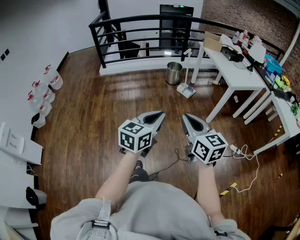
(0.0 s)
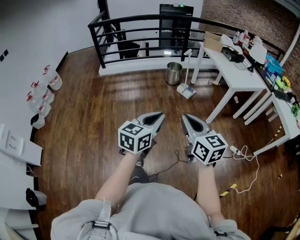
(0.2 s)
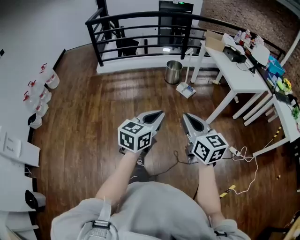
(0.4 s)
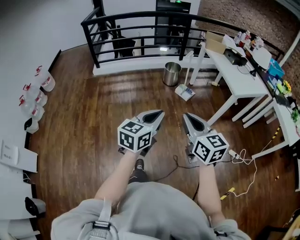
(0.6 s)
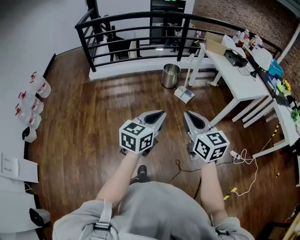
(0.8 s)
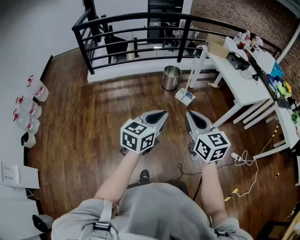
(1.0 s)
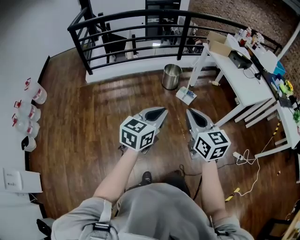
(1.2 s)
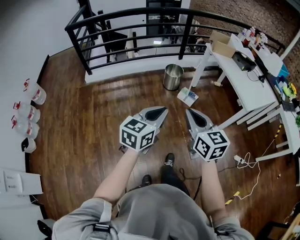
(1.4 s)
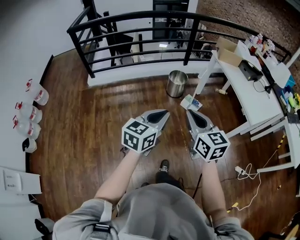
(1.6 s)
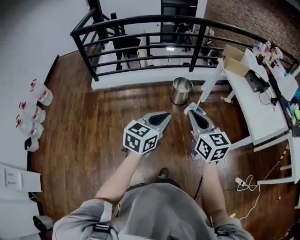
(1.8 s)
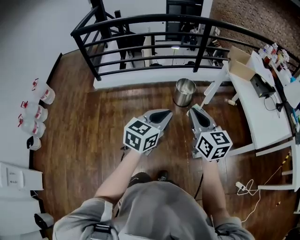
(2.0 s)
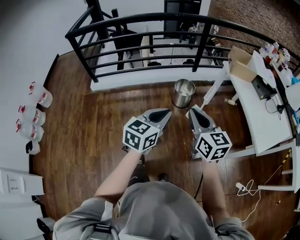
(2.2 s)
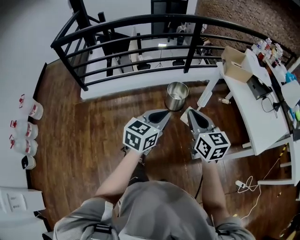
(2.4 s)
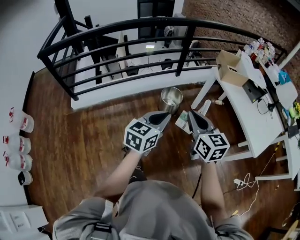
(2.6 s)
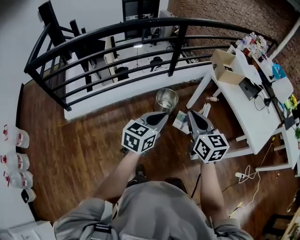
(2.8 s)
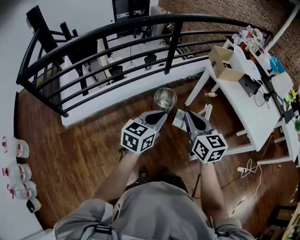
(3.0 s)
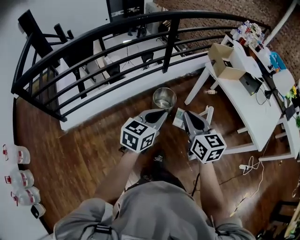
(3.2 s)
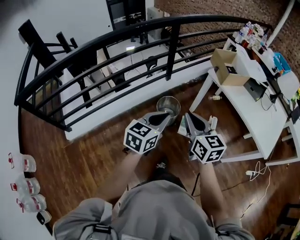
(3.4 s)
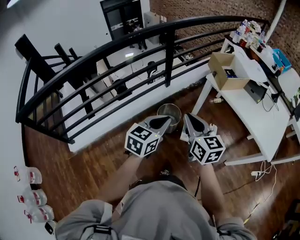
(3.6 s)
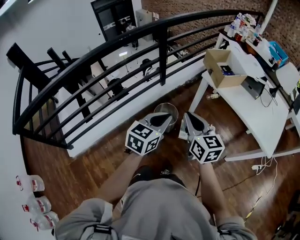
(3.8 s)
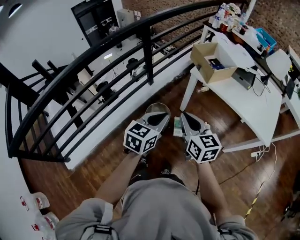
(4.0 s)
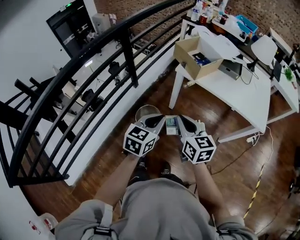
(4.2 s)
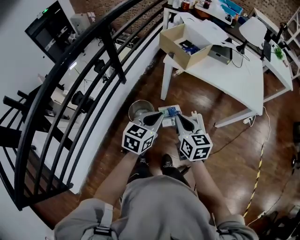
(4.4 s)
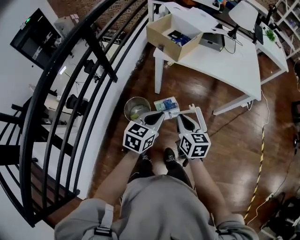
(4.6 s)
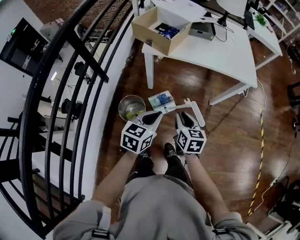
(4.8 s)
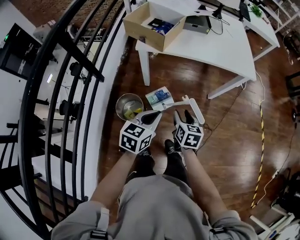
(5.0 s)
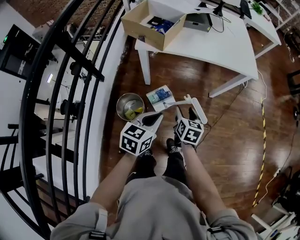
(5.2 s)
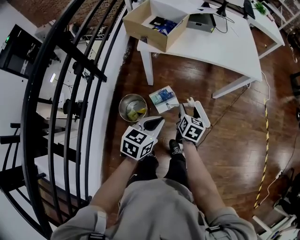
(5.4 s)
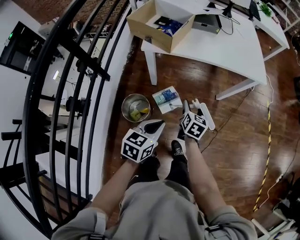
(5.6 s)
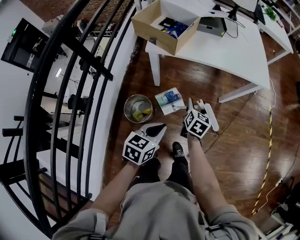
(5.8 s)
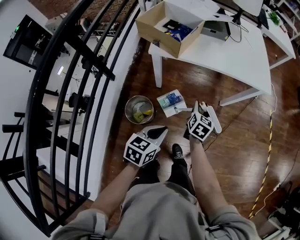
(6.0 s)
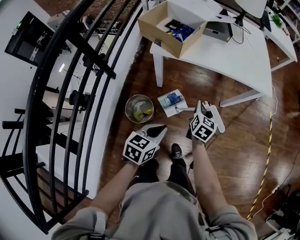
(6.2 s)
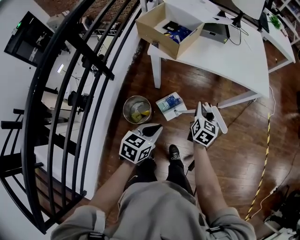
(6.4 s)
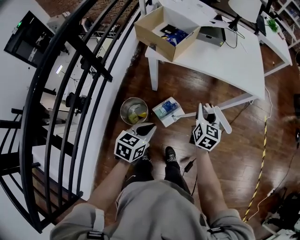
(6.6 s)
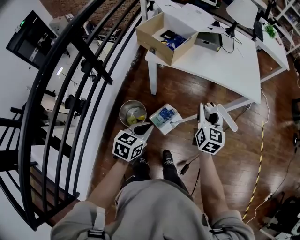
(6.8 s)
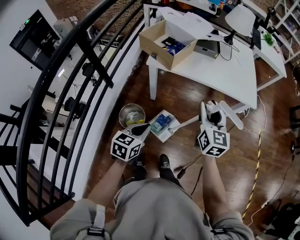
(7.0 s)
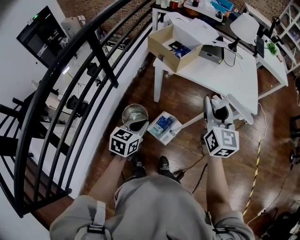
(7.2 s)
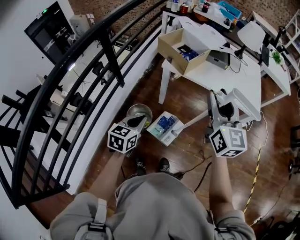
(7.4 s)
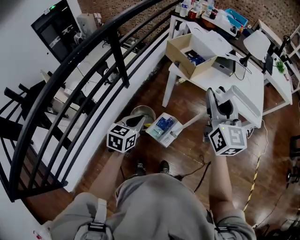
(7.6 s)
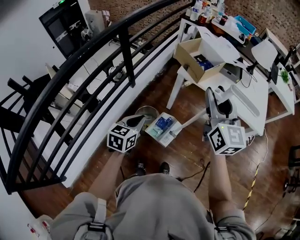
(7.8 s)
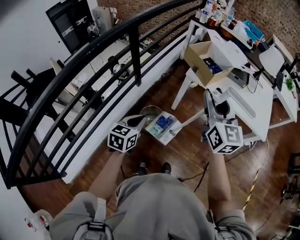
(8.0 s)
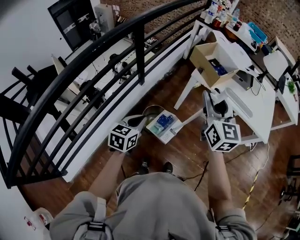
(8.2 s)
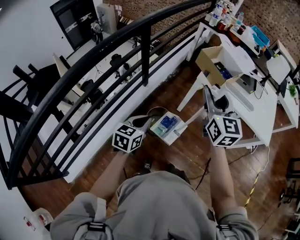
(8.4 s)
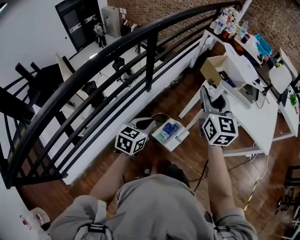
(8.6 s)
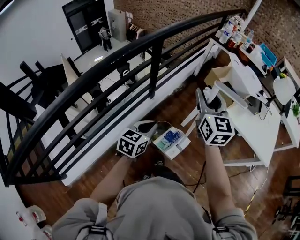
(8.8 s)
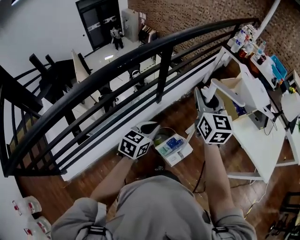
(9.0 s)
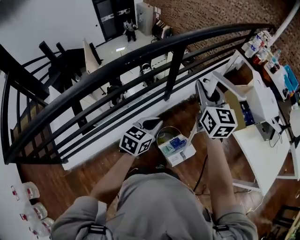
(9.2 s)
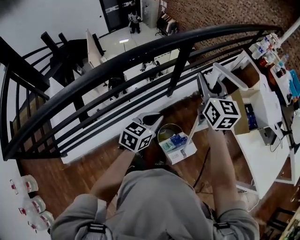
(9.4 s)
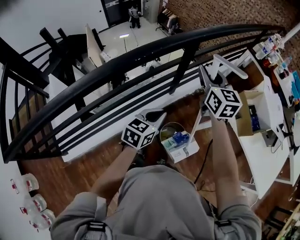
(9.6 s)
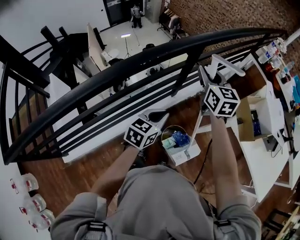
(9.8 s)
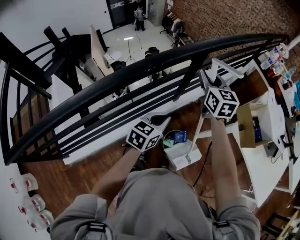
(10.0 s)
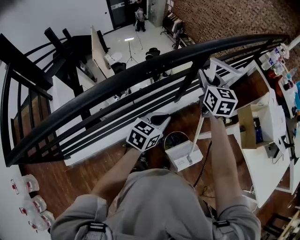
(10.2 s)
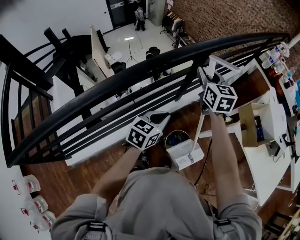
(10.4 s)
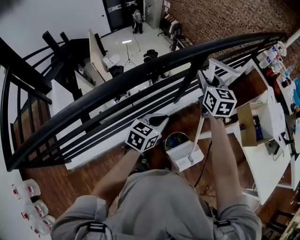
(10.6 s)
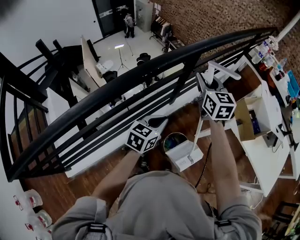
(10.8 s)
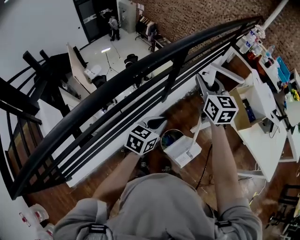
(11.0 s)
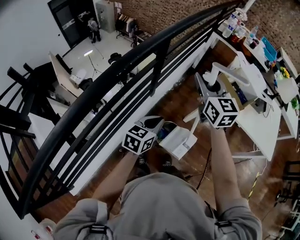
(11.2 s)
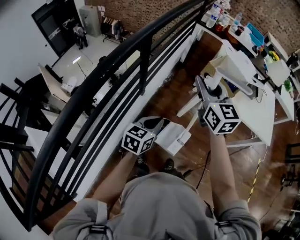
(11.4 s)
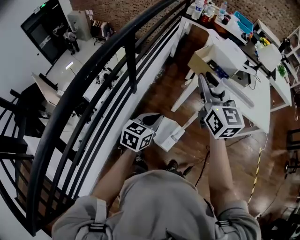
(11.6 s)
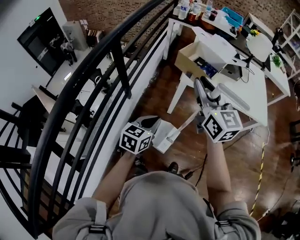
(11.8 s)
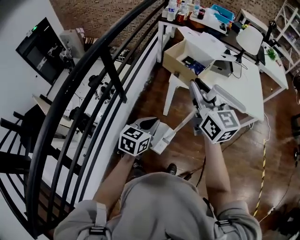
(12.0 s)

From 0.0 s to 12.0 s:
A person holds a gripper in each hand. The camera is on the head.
From 0.0 s to 1.6 s: The pair of grippers is taken forward, roughly 50 cm.
From 1.6 s to 3.0 s: Both grippers are carried forward, some 40 cm.
From 3.0 s to 4.4 s: The left gripper shifts by roughly 30 cm, and changes its angle by roughly 40 degrees, while the right gripper shifts by some 25 cm, and changes its angle by about 40 degrees.
From 4.4 s to 6.0 s: The left gripper travels downward by some 10 cm, and swivels about 20 degrees. The right gripper moves roughly 25 cm, turns by approximately 50 degrees, and opens.
From 6.0 s to 7.6 s: The left gripper moves some 15 cm, and rotates about 30 degrees. The right gripper travels upward by roughly 40 cm, and tips its fingers upward by approximately 40 degrees.
From 7.6 s to 9.0 s: The left gripper heads to the left and forward, covering approximately 15 cm; the right gripper moves to the left and forward, some 30 cm, and turns by approximately 20 degrees.
From 9.0 s to 10.4 s: The left gripper travels to the left and forward by approximately 15 cm. The right gripper heads forward and to the left, covering roughly 25 cm.
From 10.4 s to 12.0 s: The right gripper shifts by approximately 50 cm, and swivels about 30 degrees. The left gripper moves about 30 cm, and rotates approximately 30 degrees.

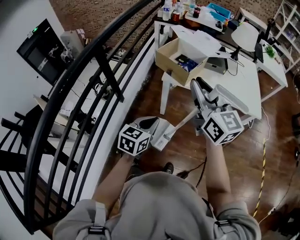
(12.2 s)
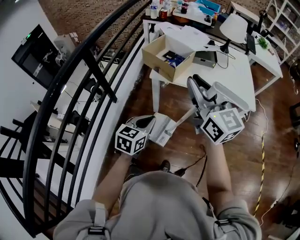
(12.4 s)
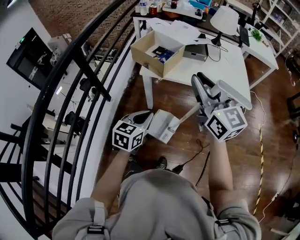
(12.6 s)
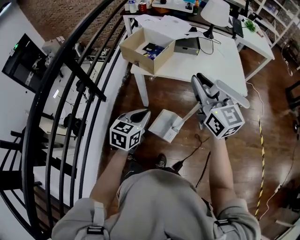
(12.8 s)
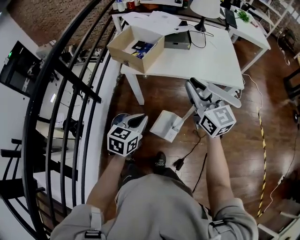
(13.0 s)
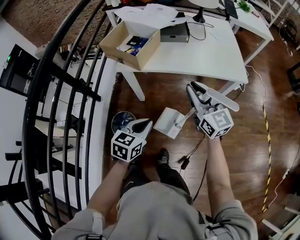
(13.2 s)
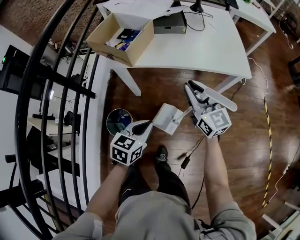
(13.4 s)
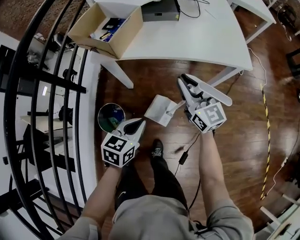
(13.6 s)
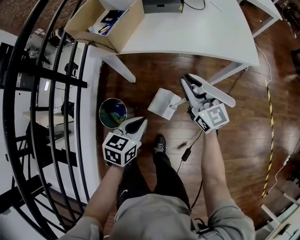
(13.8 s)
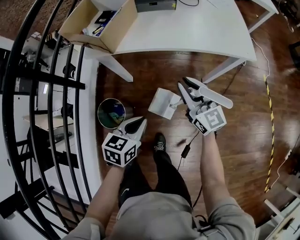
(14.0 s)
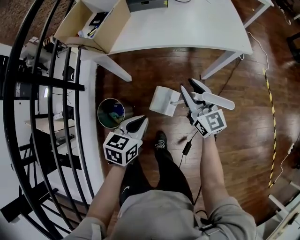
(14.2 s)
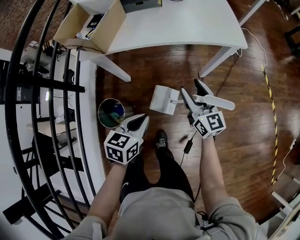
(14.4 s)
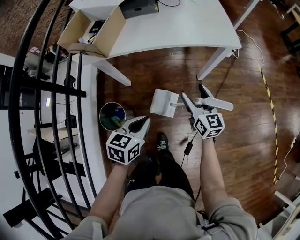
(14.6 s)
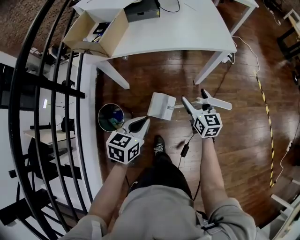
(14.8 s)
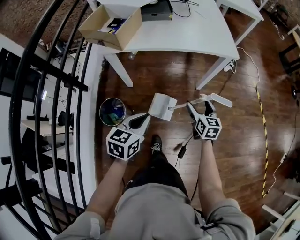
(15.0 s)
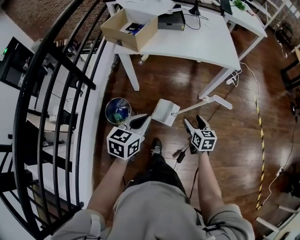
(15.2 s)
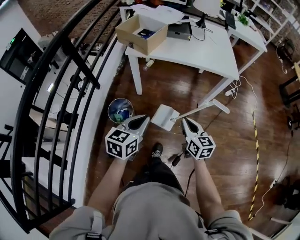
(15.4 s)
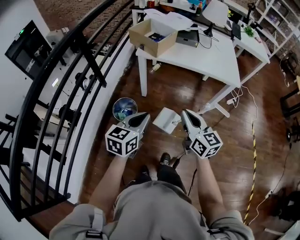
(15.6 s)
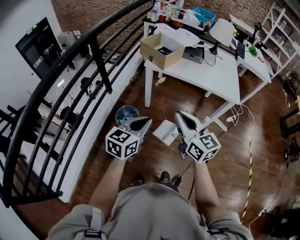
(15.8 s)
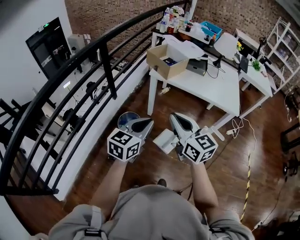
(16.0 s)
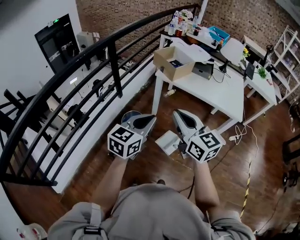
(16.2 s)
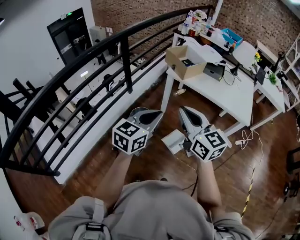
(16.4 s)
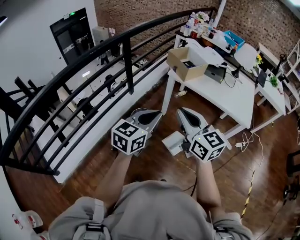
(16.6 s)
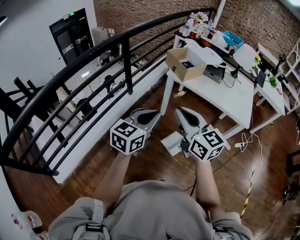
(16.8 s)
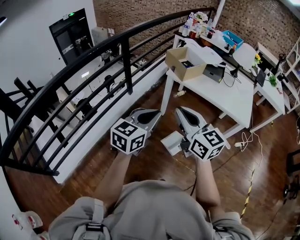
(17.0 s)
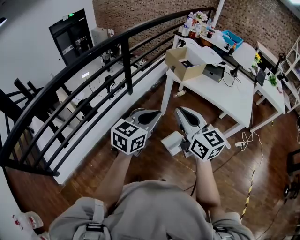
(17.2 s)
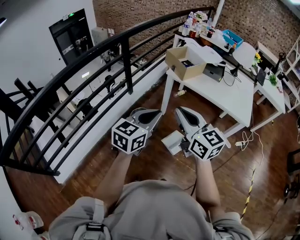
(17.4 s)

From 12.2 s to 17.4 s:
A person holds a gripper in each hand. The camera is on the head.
From 12.2 s to 14.0 s: The right gripper goes some 40 cm downward and to the right, while the left gripper shifts approximately 25 cm to the right and downward.
From 14.0 s to 15.6 s: The left gripper travels upward and backward by about 25 cm, and swivels approximately 20 degrees; the right gripper shifts about 30 cm backward and upward, and opens, then closes again.
From 15.6 s to 17.4 s: The right gripper is displaced upward and to the left by roughly 15 cm, and changes its angle by approximately 30 degrees, while the left gripper heads upward, covering roughly 10 cm.

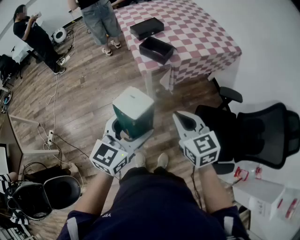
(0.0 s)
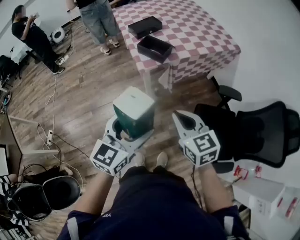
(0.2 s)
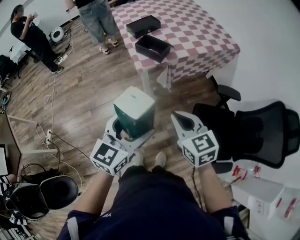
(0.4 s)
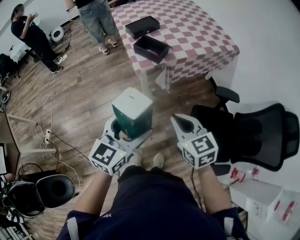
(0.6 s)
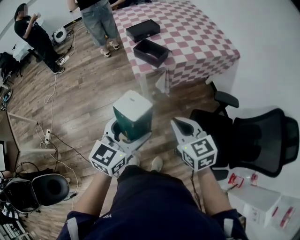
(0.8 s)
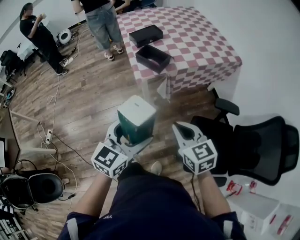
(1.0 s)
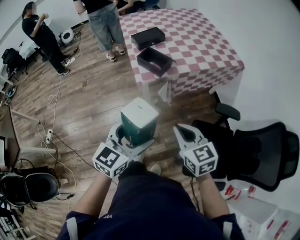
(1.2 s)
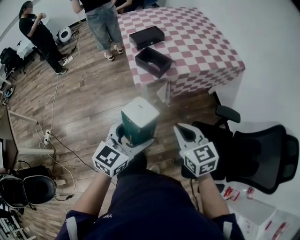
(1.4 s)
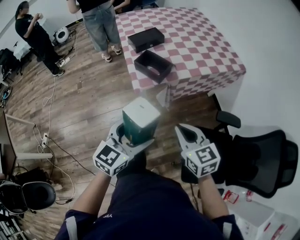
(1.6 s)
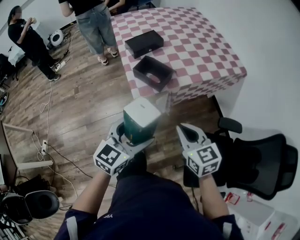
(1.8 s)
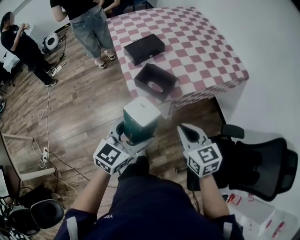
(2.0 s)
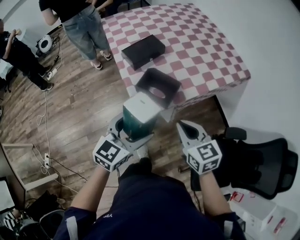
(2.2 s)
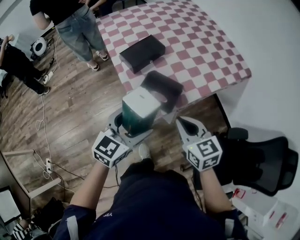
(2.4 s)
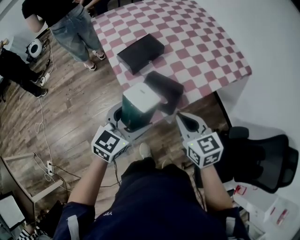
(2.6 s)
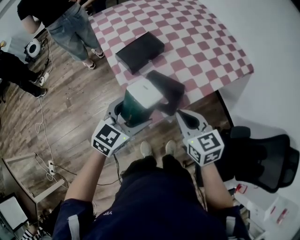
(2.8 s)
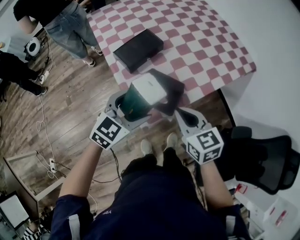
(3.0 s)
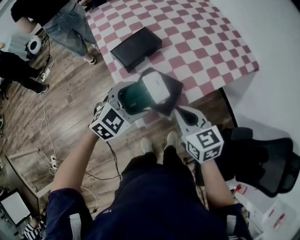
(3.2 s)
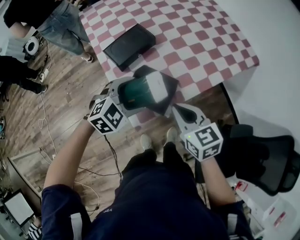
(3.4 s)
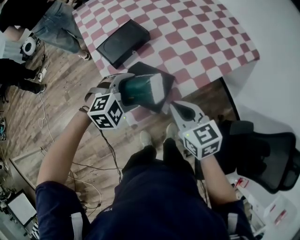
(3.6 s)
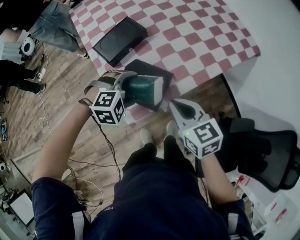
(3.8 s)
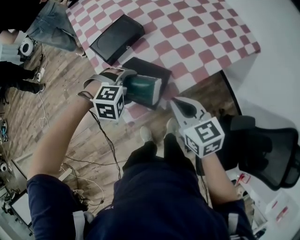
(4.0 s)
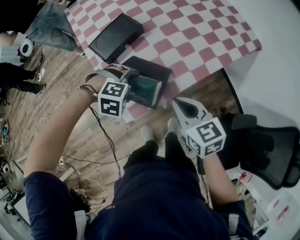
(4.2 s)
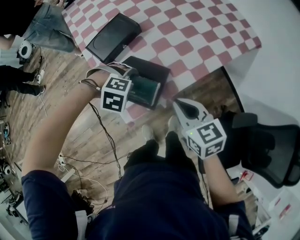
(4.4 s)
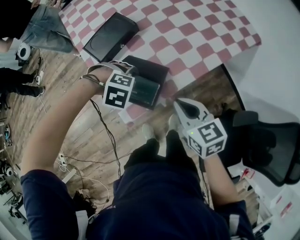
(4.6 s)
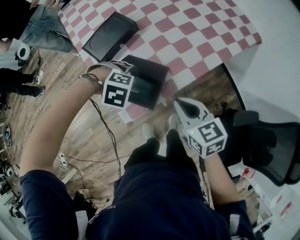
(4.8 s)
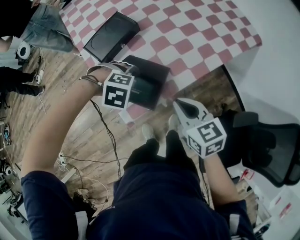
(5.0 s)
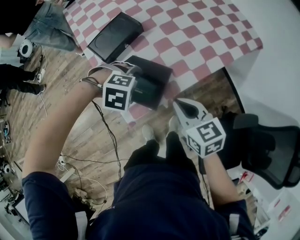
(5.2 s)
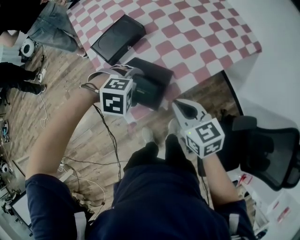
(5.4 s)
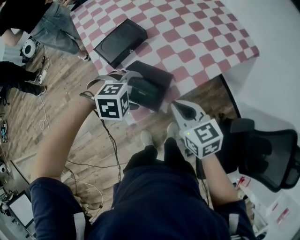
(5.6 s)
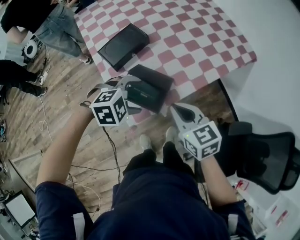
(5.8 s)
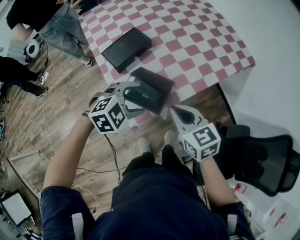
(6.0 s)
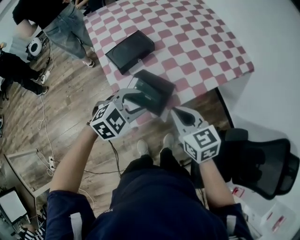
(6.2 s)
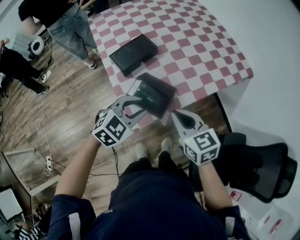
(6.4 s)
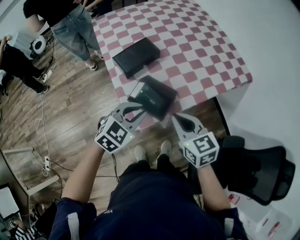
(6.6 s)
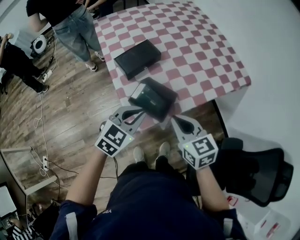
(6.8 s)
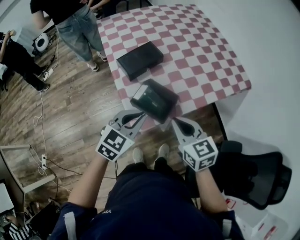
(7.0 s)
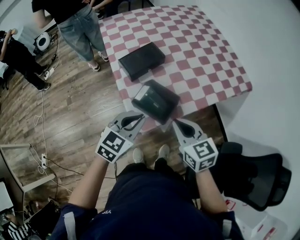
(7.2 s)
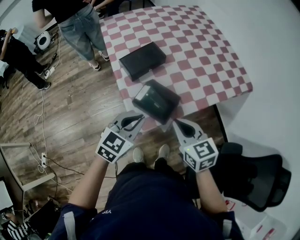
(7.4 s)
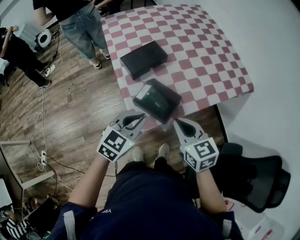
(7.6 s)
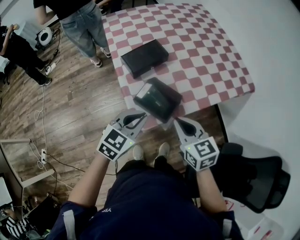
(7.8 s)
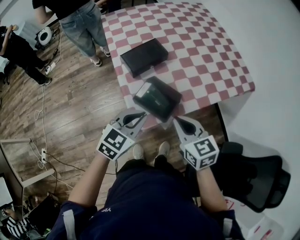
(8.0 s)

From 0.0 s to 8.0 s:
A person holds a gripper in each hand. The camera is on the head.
From 0.0 s to 1.6 s: Both grippers travel together forward and to the right, some 10 cm.
From 1.6 s to 3.2 s: The two grippers go some 35 cm forward. The left gripper changes its angle by about 40 degrees.
From 3.2 s to 4.8 s: The right gripper changes place by roughly 10 cm, while the left gripper goes roughly 15 cm downward, and angles its fingers downward, by some 50 degrees.
From 4.8 s to 6.4 s: The left gripper heads upward, covering about 15 cm, tilts its fingers some 40 degrees upward, and closes its fingers. Meanwhile the right gripper heads upward, covering some 10 cm.
From 6.4 s to 8.0 s: The left gripper rotates about 30 degrees.
